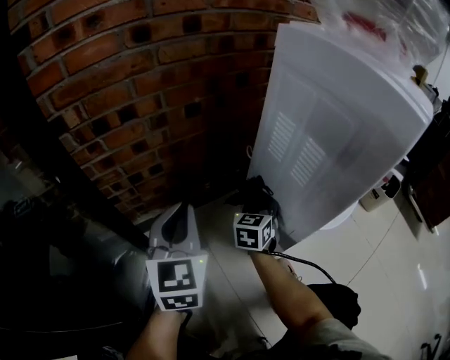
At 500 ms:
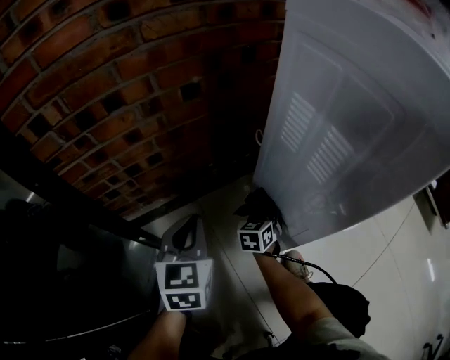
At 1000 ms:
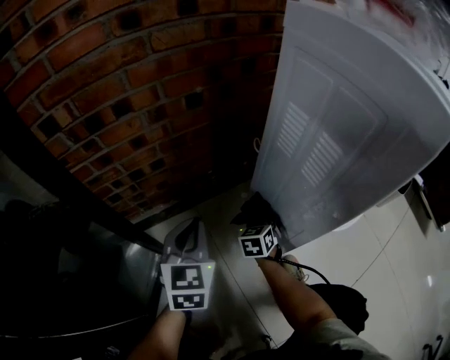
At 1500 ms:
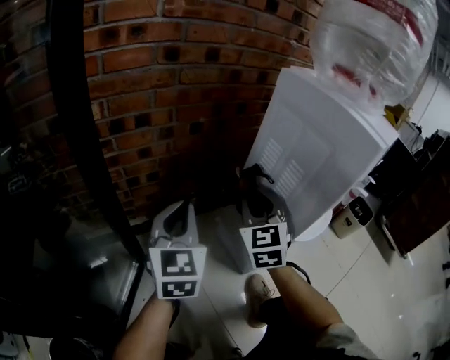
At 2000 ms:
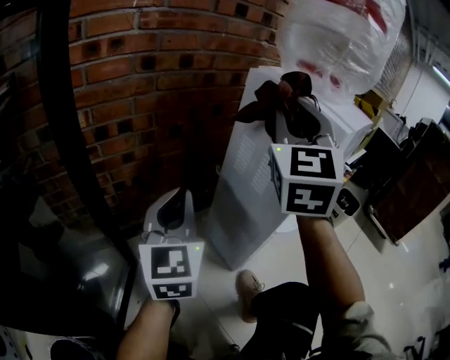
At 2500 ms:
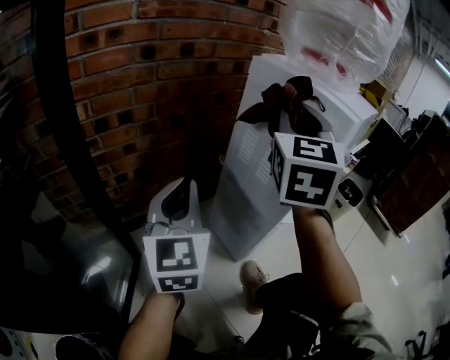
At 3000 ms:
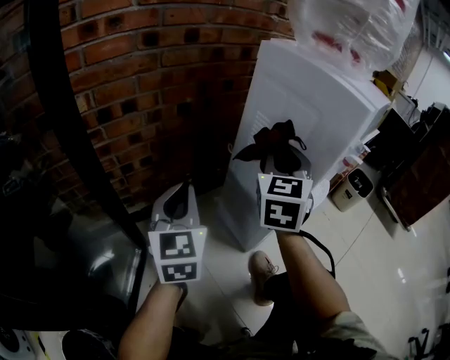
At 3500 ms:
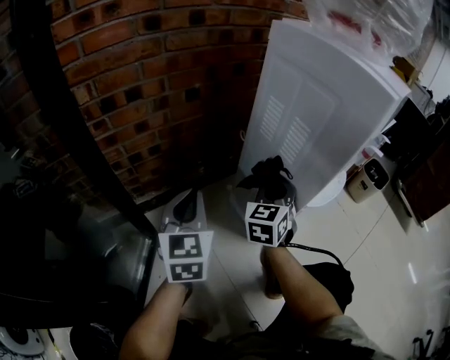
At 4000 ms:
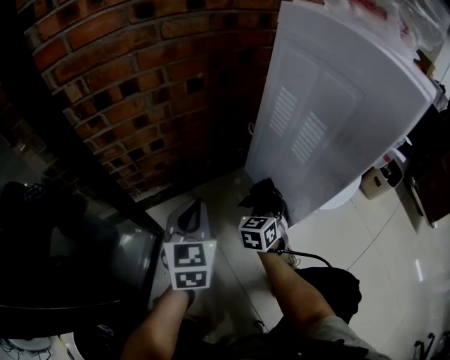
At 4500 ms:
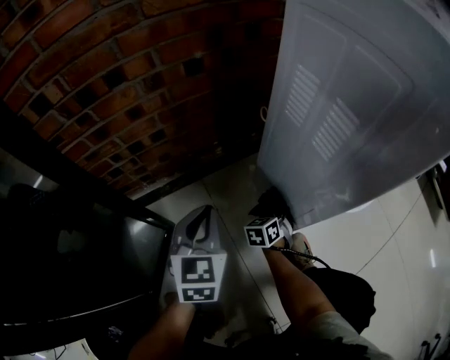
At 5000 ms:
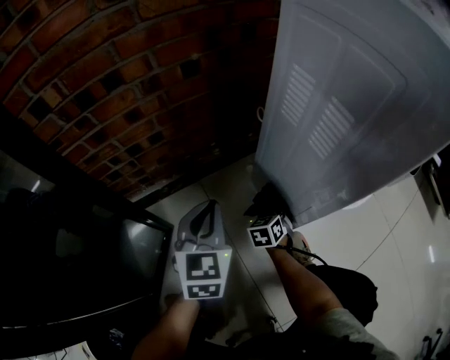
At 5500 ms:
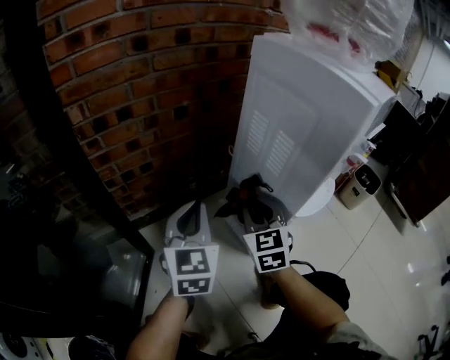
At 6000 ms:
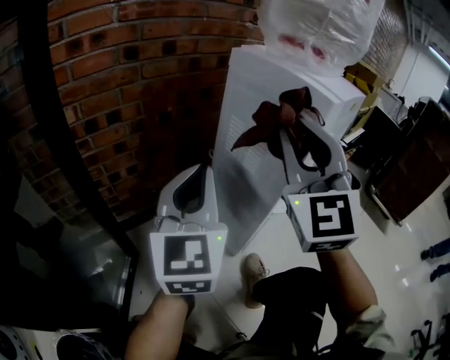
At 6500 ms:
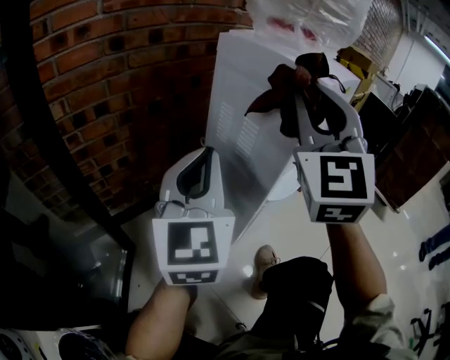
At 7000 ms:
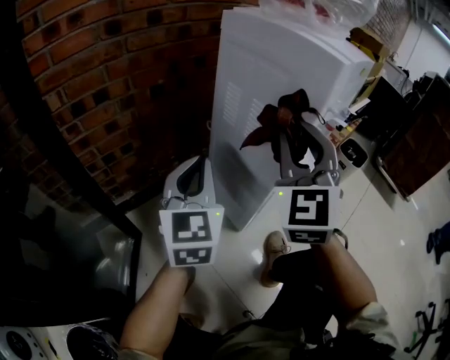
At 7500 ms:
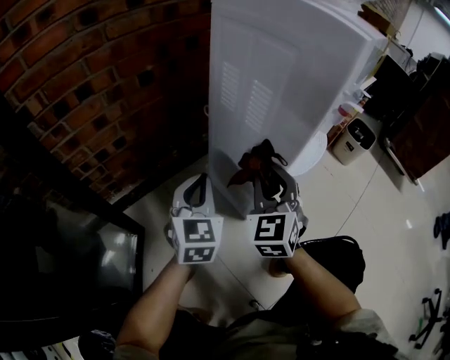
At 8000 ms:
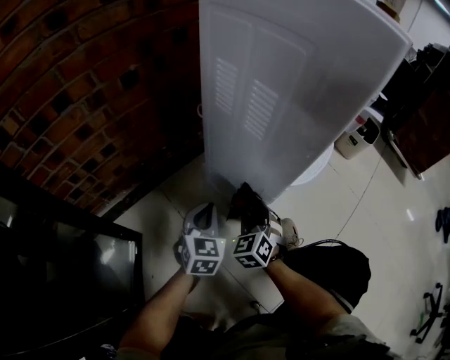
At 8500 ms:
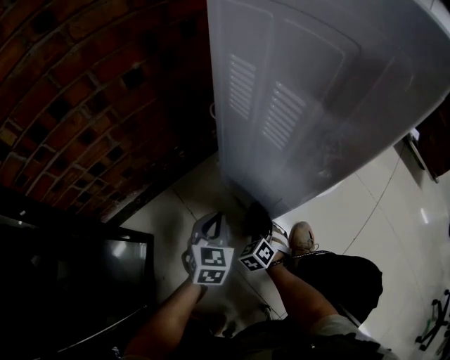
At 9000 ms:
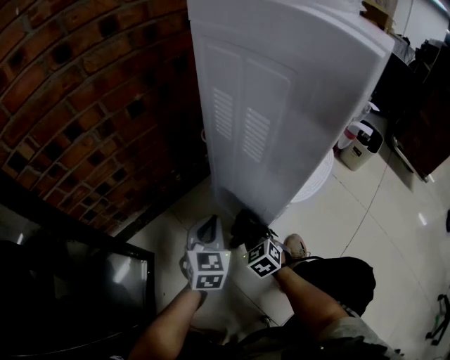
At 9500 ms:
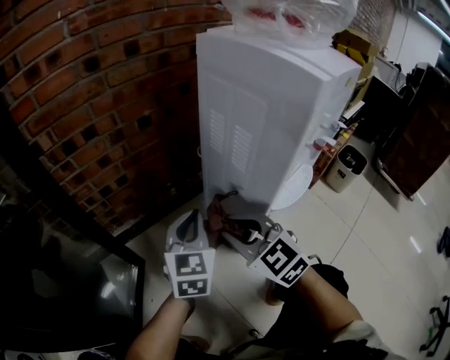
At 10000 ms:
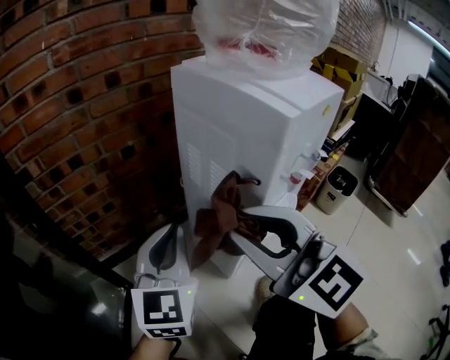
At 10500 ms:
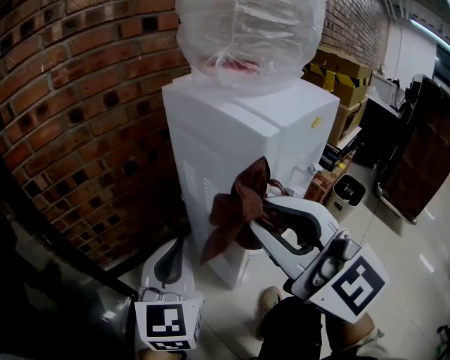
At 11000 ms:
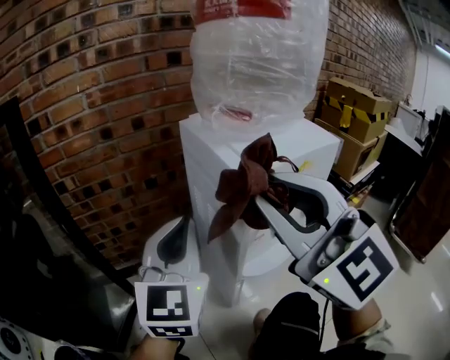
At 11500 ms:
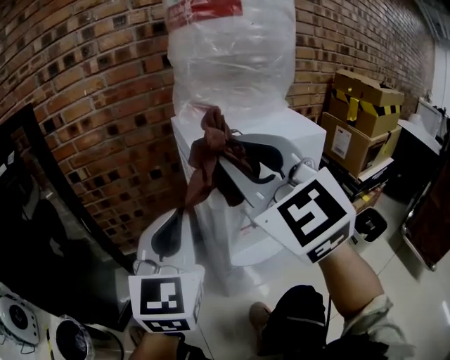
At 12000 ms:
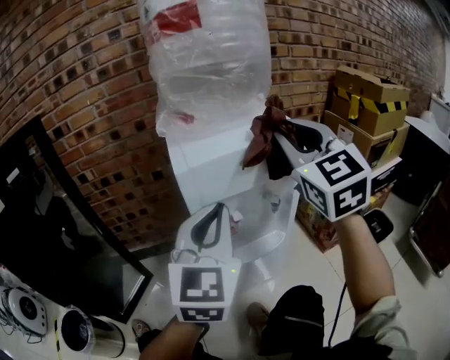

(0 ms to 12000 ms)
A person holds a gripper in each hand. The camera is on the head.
0 ms - 2000 ms: The left gripper shifts roughly 10 cm upward. The right gripper goes some 50 cm upward, and points its fingers approximately 40 degrees further upward.
2000 ms - 4000 ms: The left gripper moves downward, roughly 20 cm, and swivels roughly 20 degrees; the right gripper travels downward by about 50 cm, and tips its fingers downward by approximately 40 degrees.
4000 ms - 6000 ms: The right gripper goes some 50 cm upward, and tips its fingers upward by about 40 degrees; the left gripper is displaced upward by some 25 cm, and changes its angle by roughly 30 degrees.
6000 ms - 8000 ms: The grippers both shift downward by approximately 40 cm. The right gripper angles its fingers downward, by approximately 40 degrees. The left gripper tips its fingers downward by some 40 degrees.
8000 ms - 10000 ms: Both grippers travel together upward, about 35 cm. The left gripper swivels about 30 degrees. Meanwhile the right gripper points its fingers approximately 30 degrees further upward.
10000 ms - 12000 ms: Both grippers move to the right and upward, about 30 cm.

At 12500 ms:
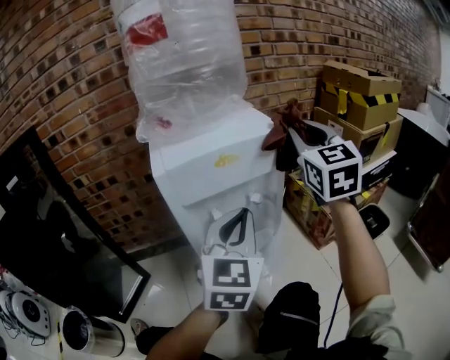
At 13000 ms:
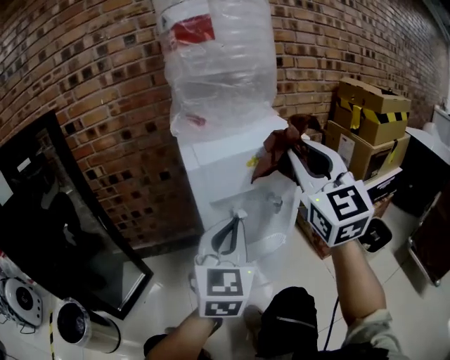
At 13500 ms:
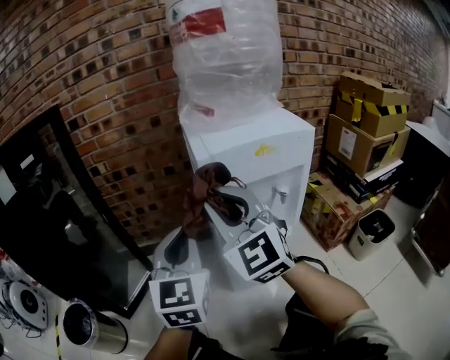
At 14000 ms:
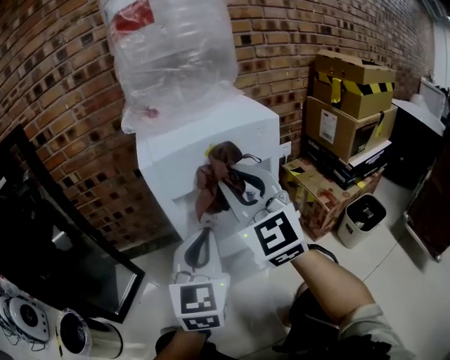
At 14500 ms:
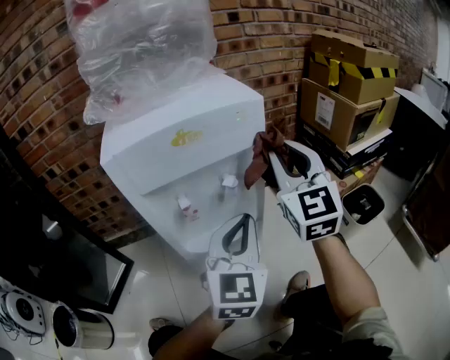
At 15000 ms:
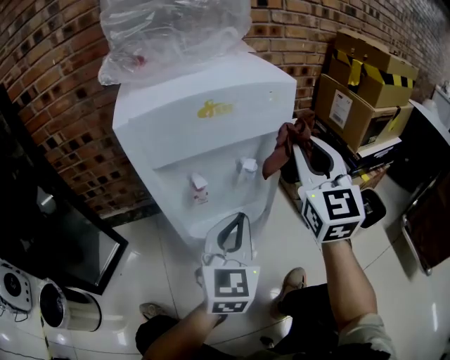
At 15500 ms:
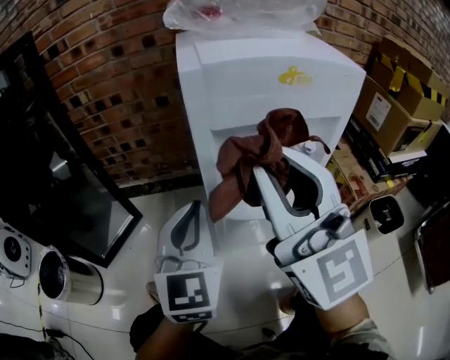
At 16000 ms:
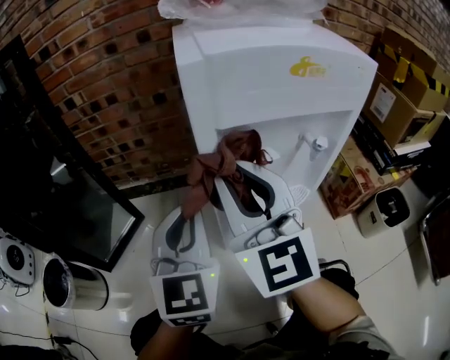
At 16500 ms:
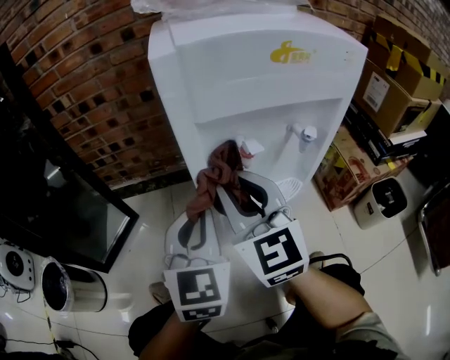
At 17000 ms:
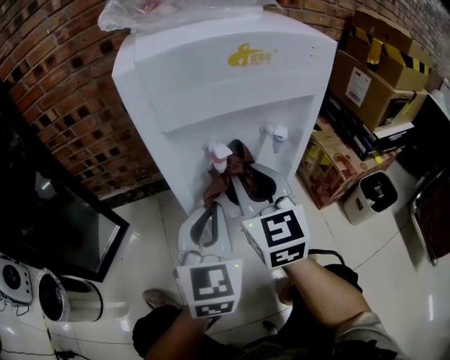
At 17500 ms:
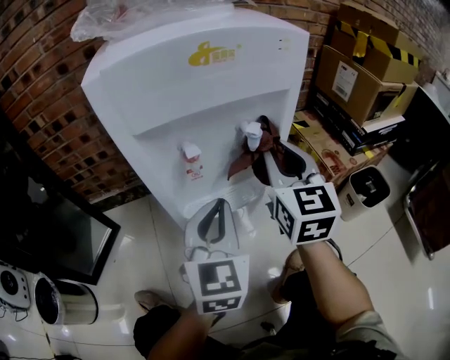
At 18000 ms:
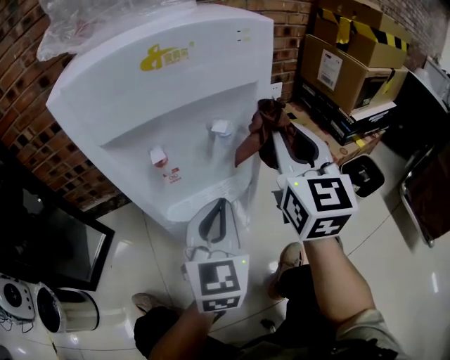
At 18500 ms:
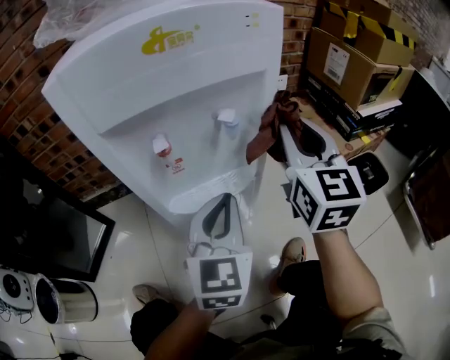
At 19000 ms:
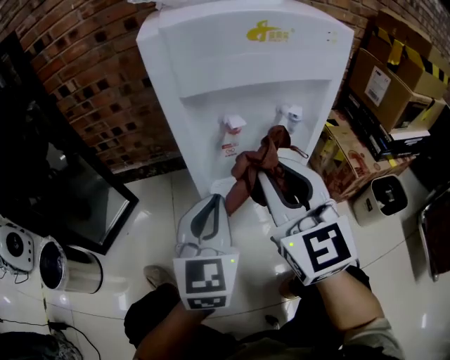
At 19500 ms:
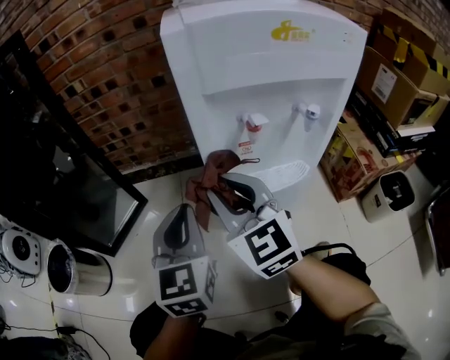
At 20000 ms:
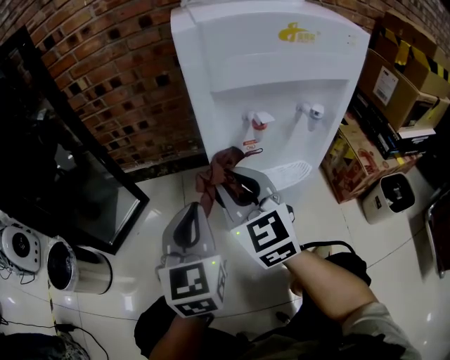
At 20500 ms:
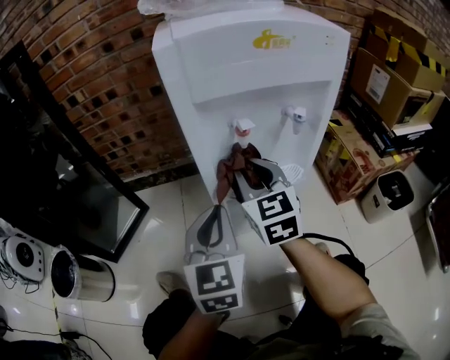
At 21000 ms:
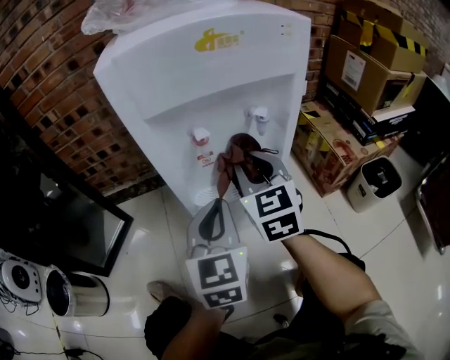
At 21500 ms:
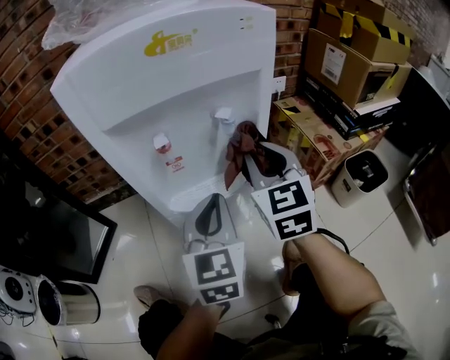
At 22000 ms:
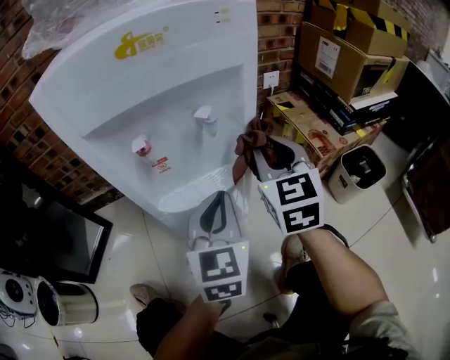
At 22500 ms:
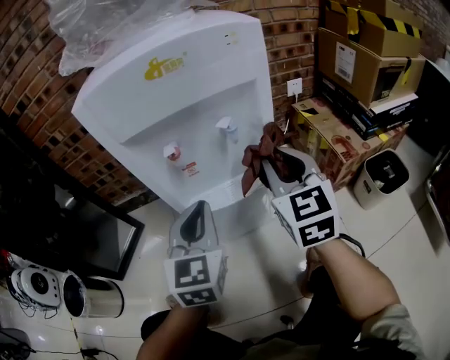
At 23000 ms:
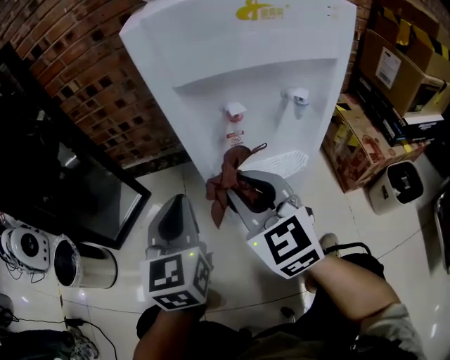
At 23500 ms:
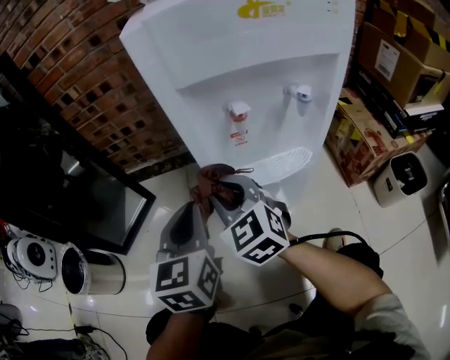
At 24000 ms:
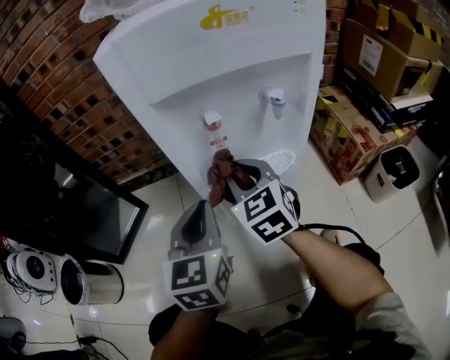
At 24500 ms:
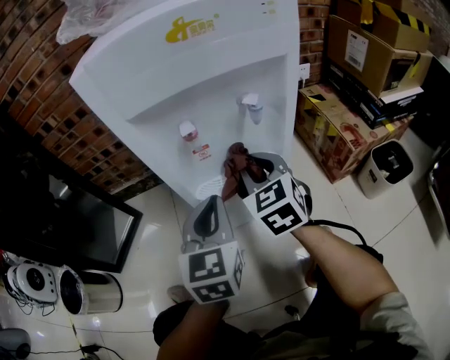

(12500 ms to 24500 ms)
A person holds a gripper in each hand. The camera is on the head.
12500 ms - 14500 ms: Both grippers move downward, some 10 cm. The left gripper goes to the left and returns, roughly 20 cm each way. Meanwhile the right gripper moves some 30 cm to the left and comes back.
14500 ms - 16500 ms: The right gripper shifts by approximately 30 cm, and swivels some 20 degrees, while the left gripper changes place by approximately 20 cm, and swivels some 20 degrees.
16500 ms - 18500 ms: The right gripper heads to the right, covering some 25 cm, and changes its angle by roughly 30 degrees; the left gripper is displaced to the right by approximately 15 cm.
18500 ms - 20500 ms: The left gripper changes place by roughly 15 cm. The right gripper changes place by approximately 25 cm, and turns by approximately 20 degrees.
20500 ms - 22500 ms: The right gripper heads to the right, covering some 15 cm. The left gripper is displaced to the right by approximately 5 cm.
22500 ms - 24500 ms: The left gripper reaches about 15 cm to the left, then returns. The right gripper is displaced downward by approximately 10 cm, and moves some 25 cm to the left and comes back.

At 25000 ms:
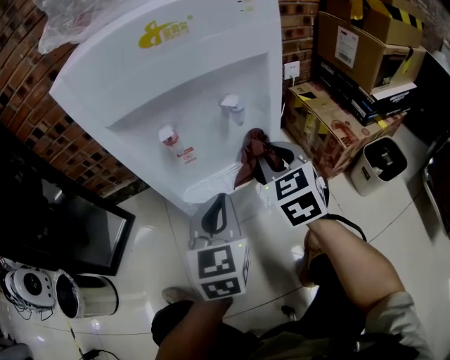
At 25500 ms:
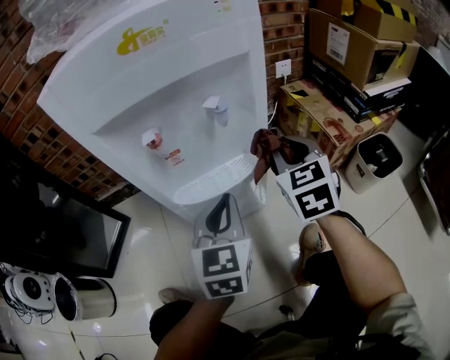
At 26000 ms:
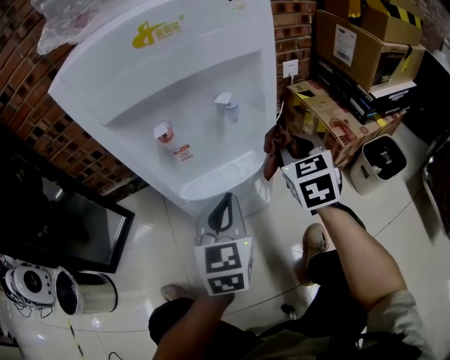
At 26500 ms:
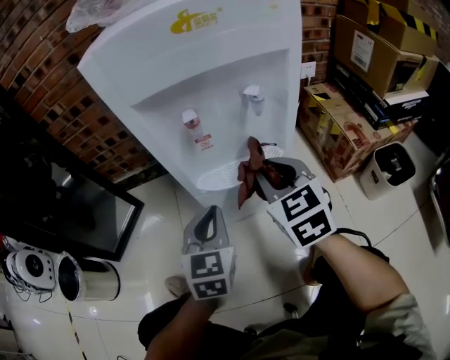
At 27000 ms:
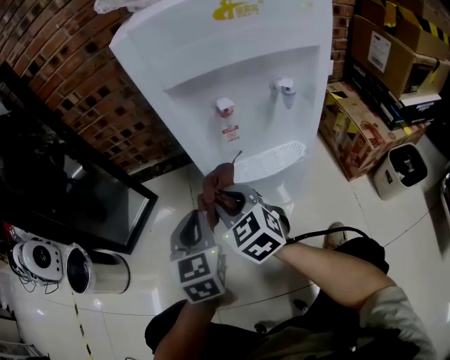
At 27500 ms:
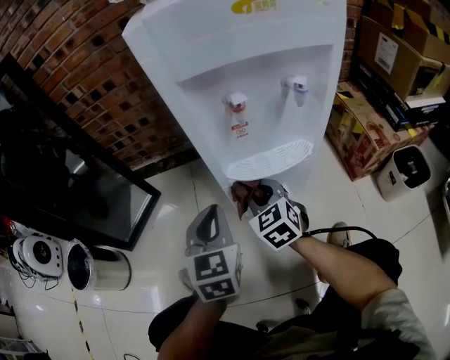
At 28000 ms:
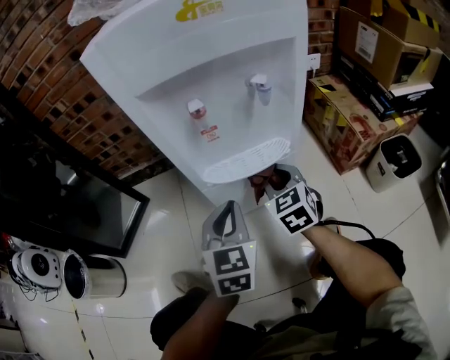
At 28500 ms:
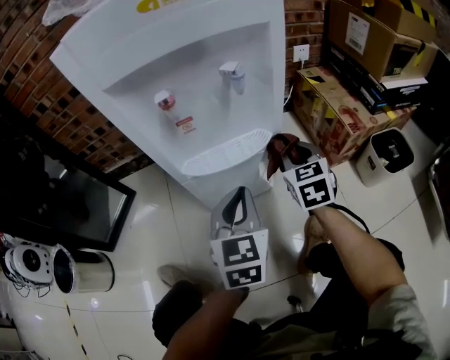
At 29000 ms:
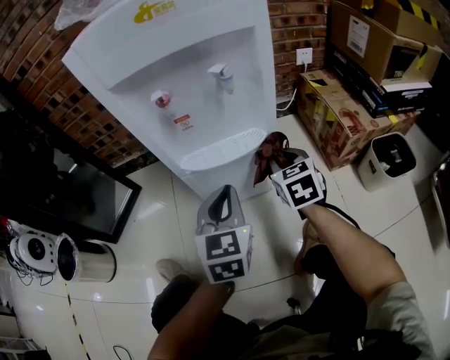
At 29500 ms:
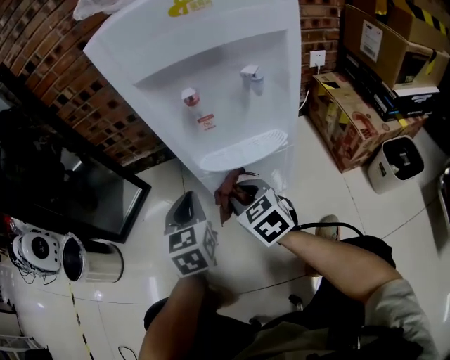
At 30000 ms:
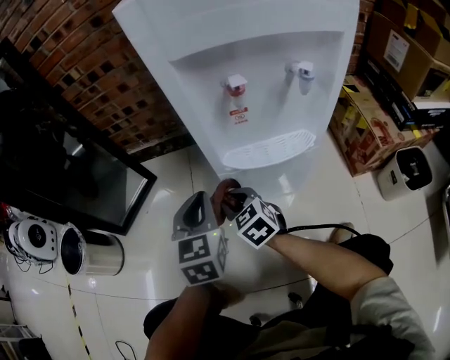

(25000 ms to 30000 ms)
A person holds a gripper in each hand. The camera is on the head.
25000 ms - 27500 ms: The right gripper moves some 20 cm. The left gripper ends up roughly 15 cm from where it was.
